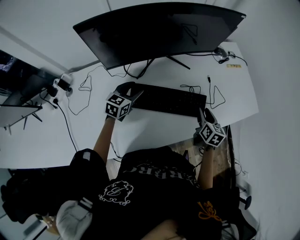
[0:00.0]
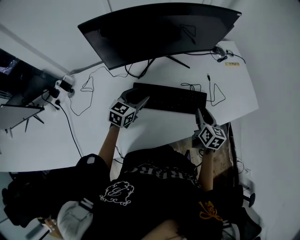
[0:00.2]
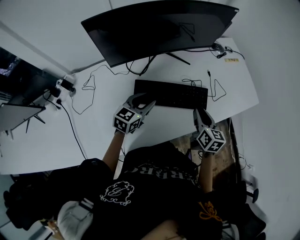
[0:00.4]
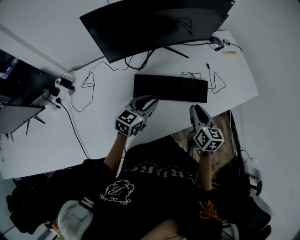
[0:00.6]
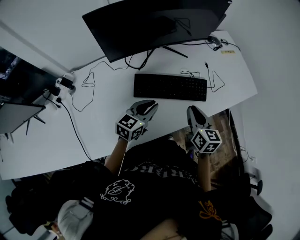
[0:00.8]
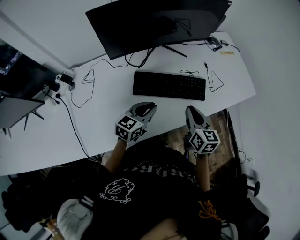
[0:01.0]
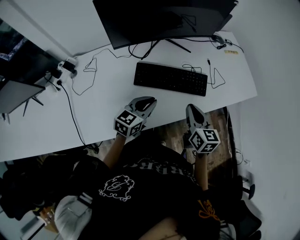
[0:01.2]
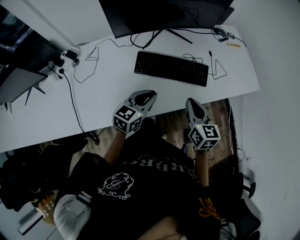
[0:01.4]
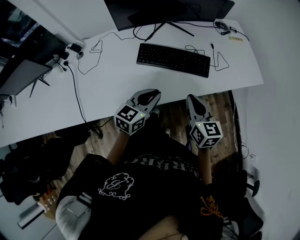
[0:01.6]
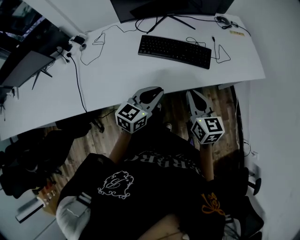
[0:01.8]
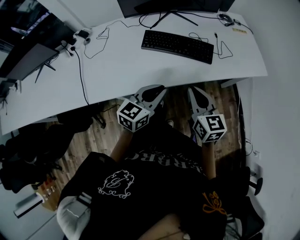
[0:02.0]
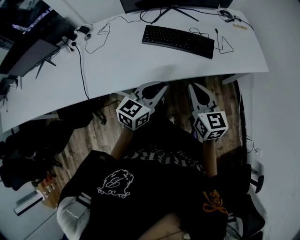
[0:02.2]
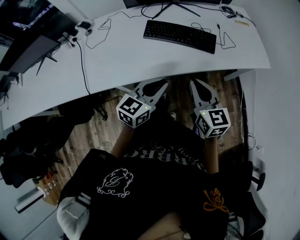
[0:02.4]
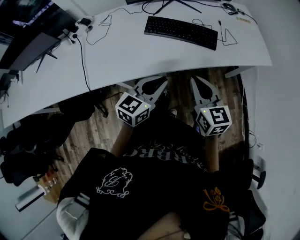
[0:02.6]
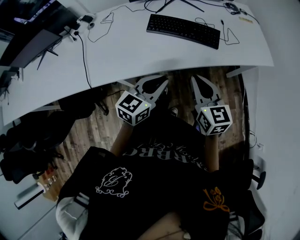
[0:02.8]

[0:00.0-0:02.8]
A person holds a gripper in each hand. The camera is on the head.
0:00.0 to 0:01.4: The right gripper moves backward and upward, some 25 cm, swivels approximately 20 degrees, and closes. The left gripper moves backward and to the right, approximately 25 cm, and closes up.
0:01.4 to 0:02.8: The two grippers go approximately 15 cm backward.

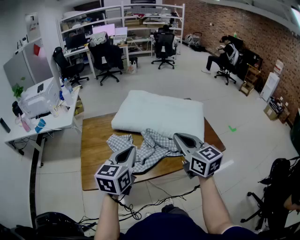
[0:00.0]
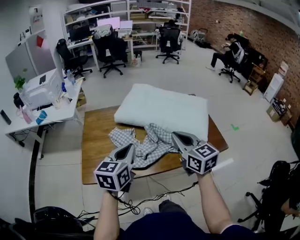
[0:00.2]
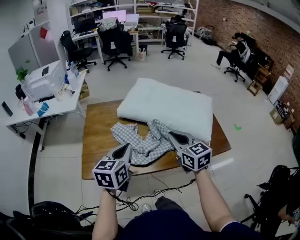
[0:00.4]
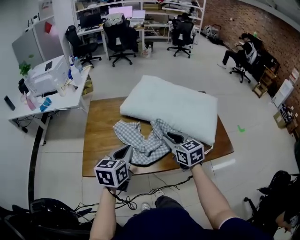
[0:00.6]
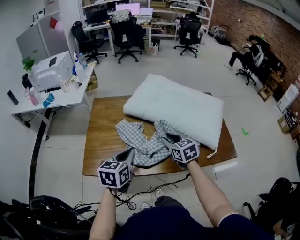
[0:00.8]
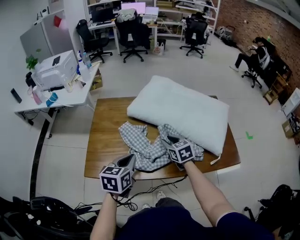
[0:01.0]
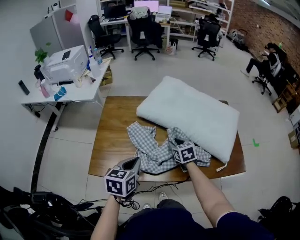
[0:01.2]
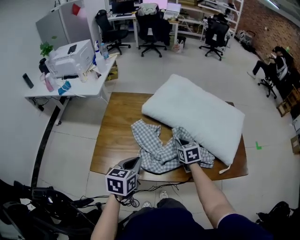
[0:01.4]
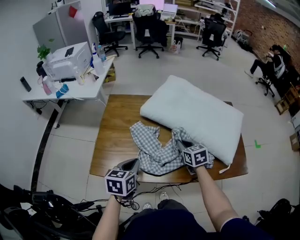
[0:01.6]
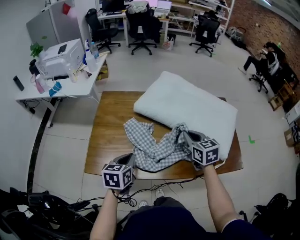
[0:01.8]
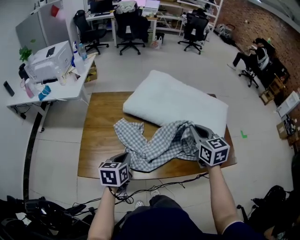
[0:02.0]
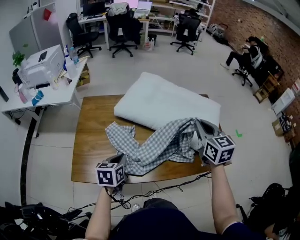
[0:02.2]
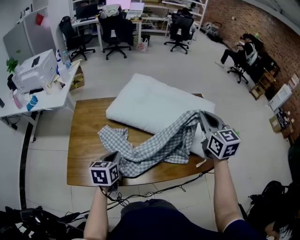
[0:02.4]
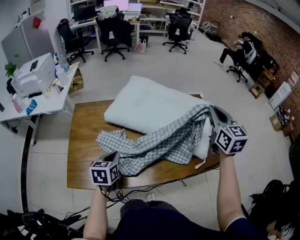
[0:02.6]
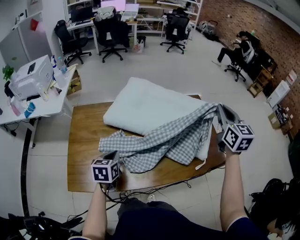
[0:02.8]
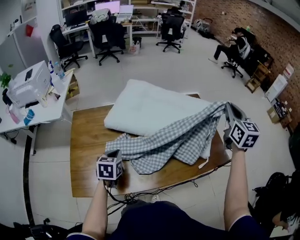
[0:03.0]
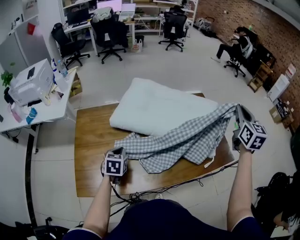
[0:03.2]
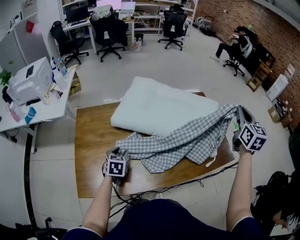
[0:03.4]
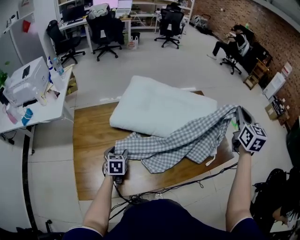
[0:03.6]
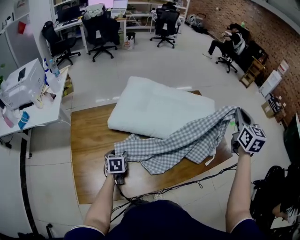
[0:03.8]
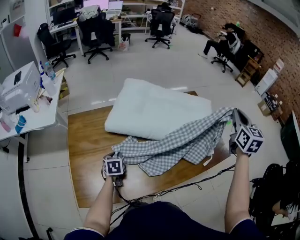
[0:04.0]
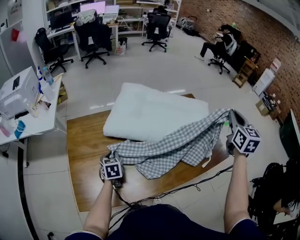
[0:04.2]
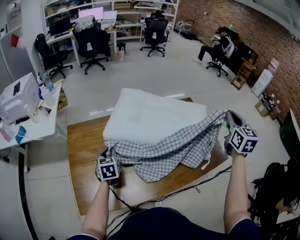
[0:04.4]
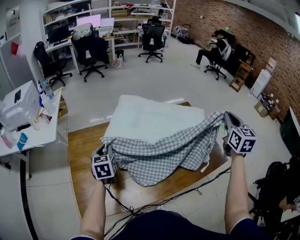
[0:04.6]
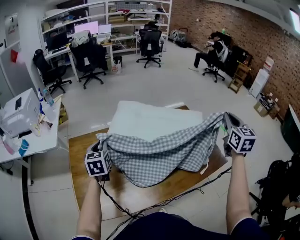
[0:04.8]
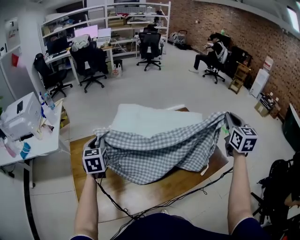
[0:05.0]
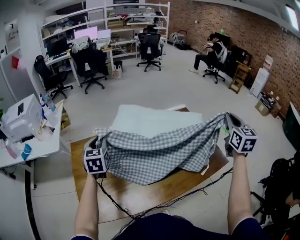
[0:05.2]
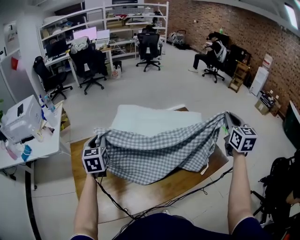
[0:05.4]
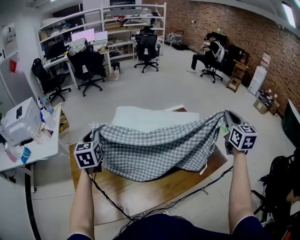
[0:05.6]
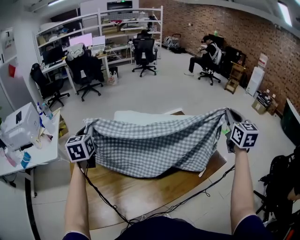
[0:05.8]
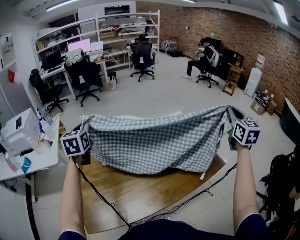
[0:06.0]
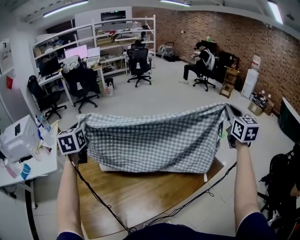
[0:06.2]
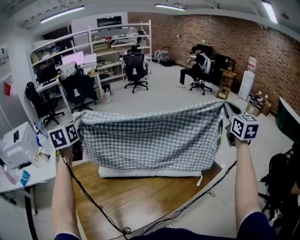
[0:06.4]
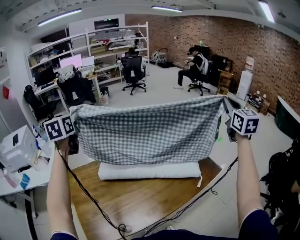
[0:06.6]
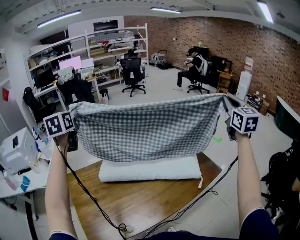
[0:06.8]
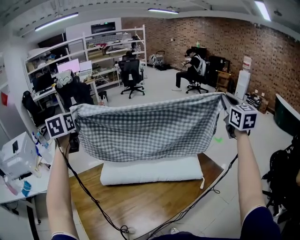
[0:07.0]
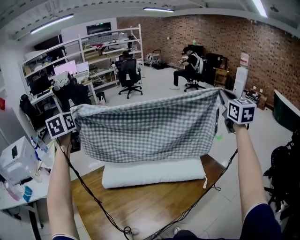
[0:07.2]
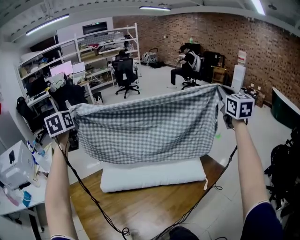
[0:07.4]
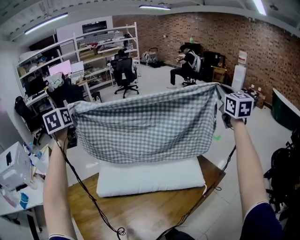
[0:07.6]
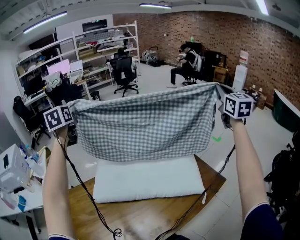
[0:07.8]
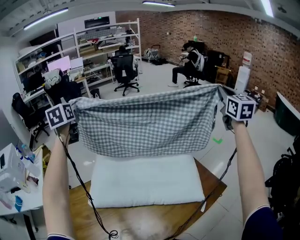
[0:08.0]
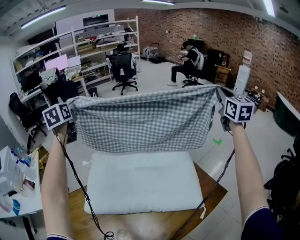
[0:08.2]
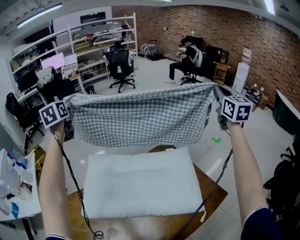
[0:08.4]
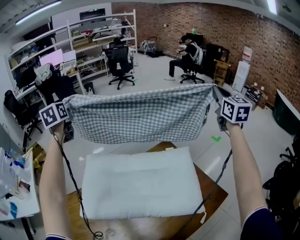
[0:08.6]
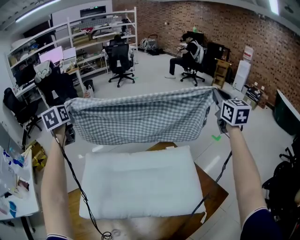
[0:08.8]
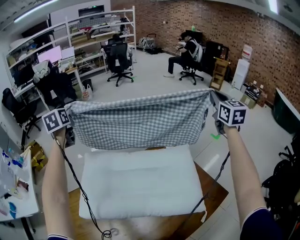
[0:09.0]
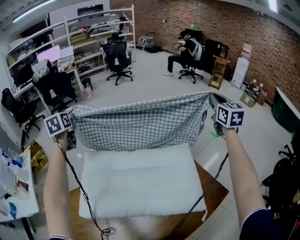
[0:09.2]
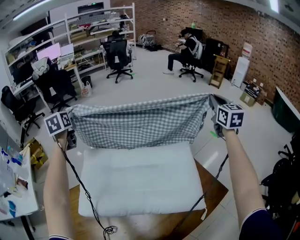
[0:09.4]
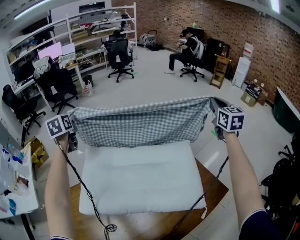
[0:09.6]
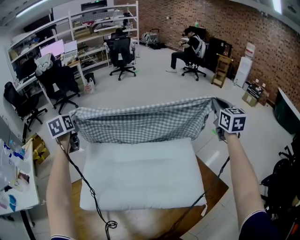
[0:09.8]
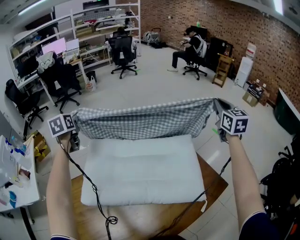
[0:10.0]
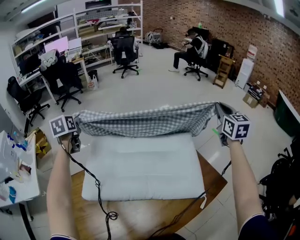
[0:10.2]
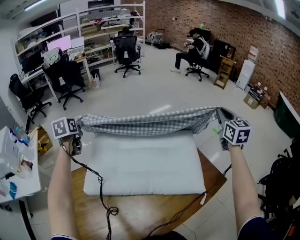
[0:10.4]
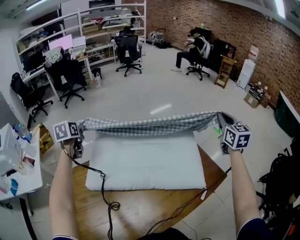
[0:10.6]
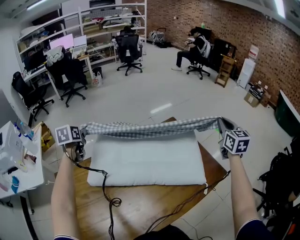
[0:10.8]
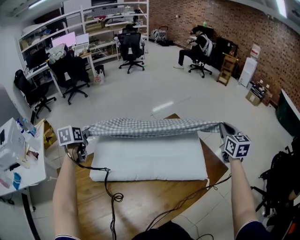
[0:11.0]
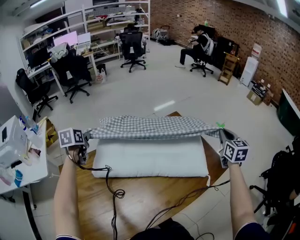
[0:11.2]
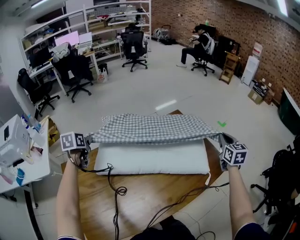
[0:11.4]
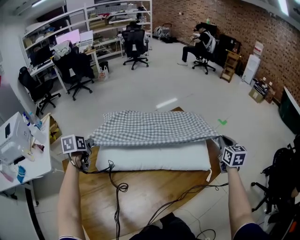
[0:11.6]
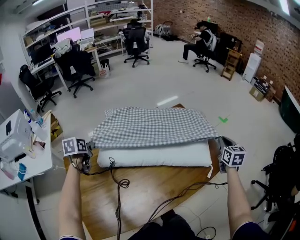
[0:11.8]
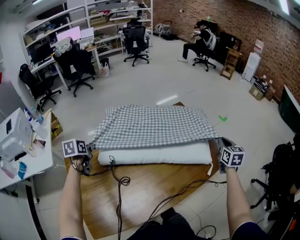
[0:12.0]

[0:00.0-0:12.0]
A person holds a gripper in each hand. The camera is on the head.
0:00.0 to 0:01.6: The left gripper moves downward and to the left, about 15 cm, and swivels about 30 degrees; the right gripper travels downward and forward by some 30 cm, angles its fingers downward, by some 30 degrees, and opens, then closes again.
0:01.6 to 0:03.0: The left gripper shifts roughly 10 cm forward. The right gripper heads to the right and upward, covering approximately 40 cm, and points its fingers some 30 degrees further upward.
0:03.0 to 0:04.4: The left gripper travels forward and to the left by about 10 cm, goes downward and returns, approximately 10 cm each way, and opens, then closes once more.
0:04.4 to 0:06.0: The left gripper moves upward and forward, roughly 30 cm, and changes its angle by about 20 degrees, while the right gripper is displaced upward and to the right by roughly 10 cm.
0:06.0 to 0:07.6: The right gripper travels upward and forward by approximately 15 cm; the left gripper is displaced forward and upward by some 20 cm.
0:07.6 to 0:09.0: The two grippers go some 20 cm forward and downward.
0:09.0 to 0:10.4: Both grippers travel together backward and downward, roughly 15 cm.
0:10.4 to 0:12.0: The left gripper shifts about 25 cm backward and downward; the right gripper is displaced downward and backward by roughly 25 cm.

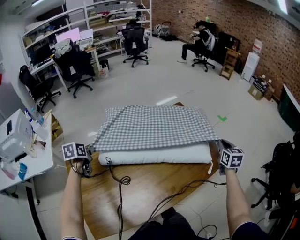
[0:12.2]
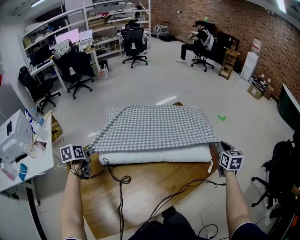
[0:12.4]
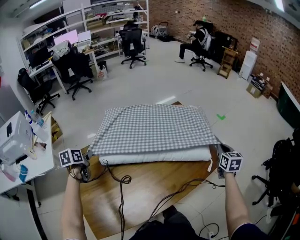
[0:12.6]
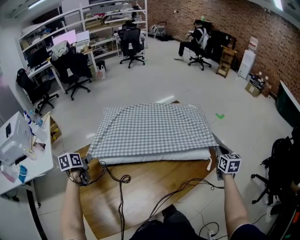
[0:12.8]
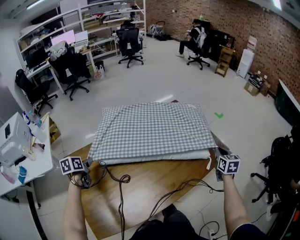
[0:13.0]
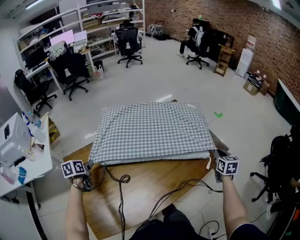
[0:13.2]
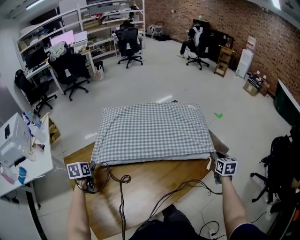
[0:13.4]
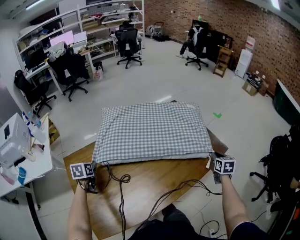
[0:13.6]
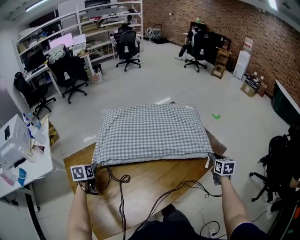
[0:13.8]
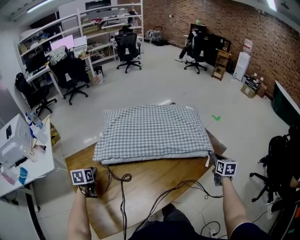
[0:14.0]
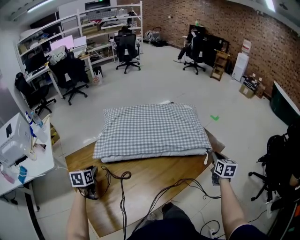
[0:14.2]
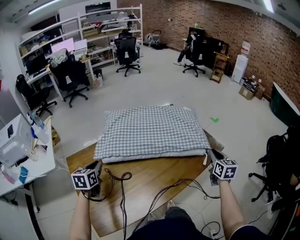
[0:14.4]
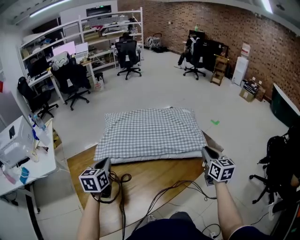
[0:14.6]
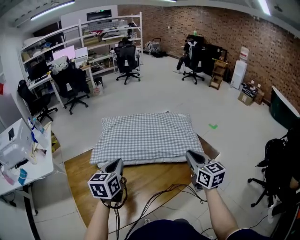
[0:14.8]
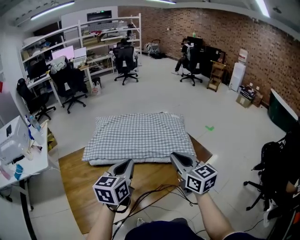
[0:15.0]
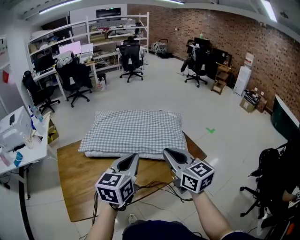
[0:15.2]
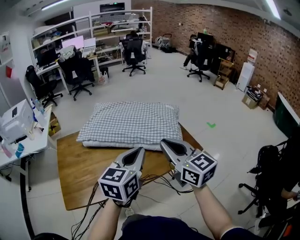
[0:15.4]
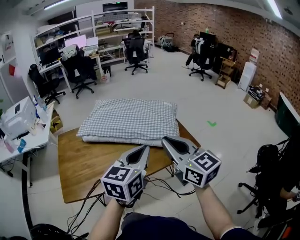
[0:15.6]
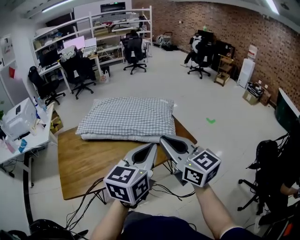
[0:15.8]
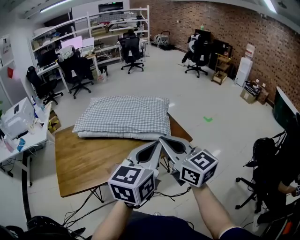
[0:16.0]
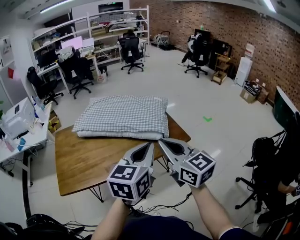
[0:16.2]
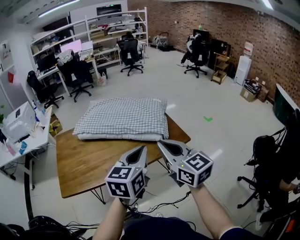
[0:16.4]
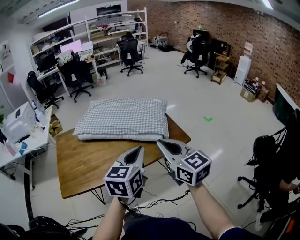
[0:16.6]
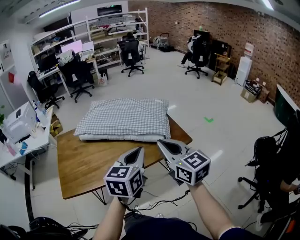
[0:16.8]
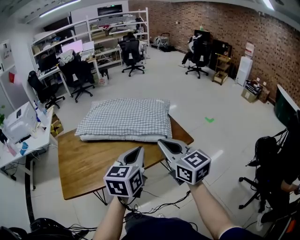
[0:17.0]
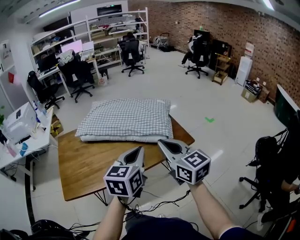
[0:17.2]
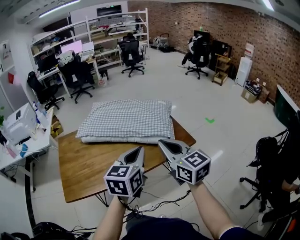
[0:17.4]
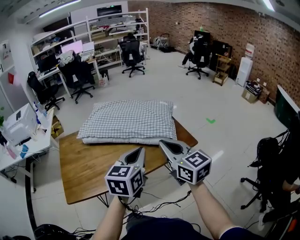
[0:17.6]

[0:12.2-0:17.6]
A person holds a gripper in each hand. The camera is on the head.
0:12.2 to 0:13.6: The grippers both shift downward and backward by roughly 10 cm.
0:13.6 to 0:15.0: The left gripper travels to the right and upward by some 40 cm, and tips its fingers upward by about 40 degrees, while the right gripper is displaced upward, to the left and backward by roughly 30 cm, and tilts its fingers about 30 degrees upward.
0:15.0 to 0:16.2: The left gripper heads to the right and backward, covering some 25 cm. Meanwhile the right gripper heads backward, to the right and upward, covering about 15 cm.
0:16.2 to 0:17.6: The left gripper is displaced to the left and forward by about 10 cm. Meanwhile the right gripper ends up roughly 5 cm from where it was.

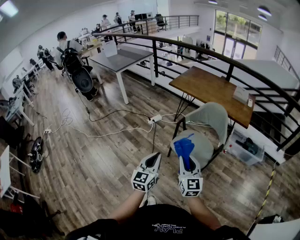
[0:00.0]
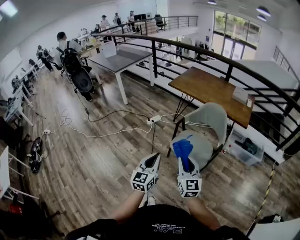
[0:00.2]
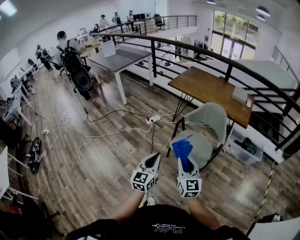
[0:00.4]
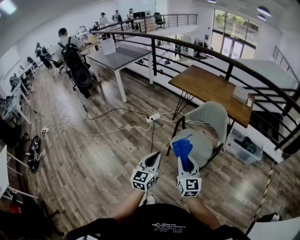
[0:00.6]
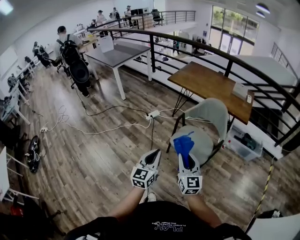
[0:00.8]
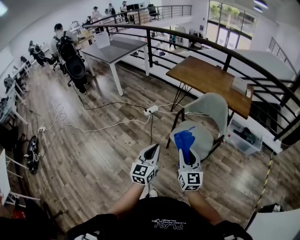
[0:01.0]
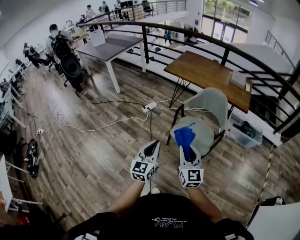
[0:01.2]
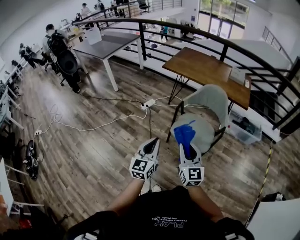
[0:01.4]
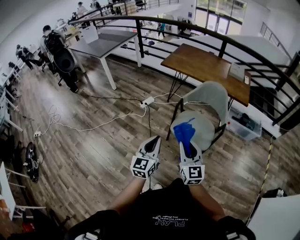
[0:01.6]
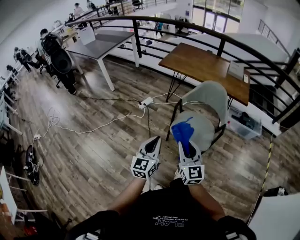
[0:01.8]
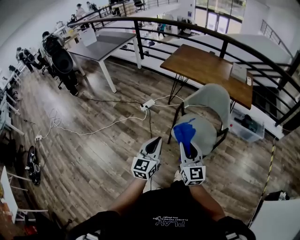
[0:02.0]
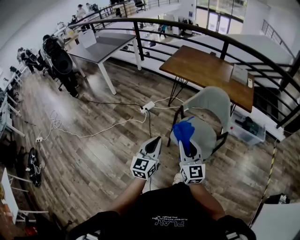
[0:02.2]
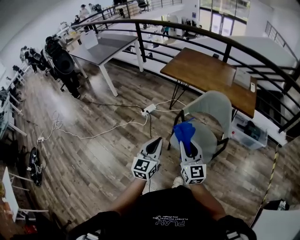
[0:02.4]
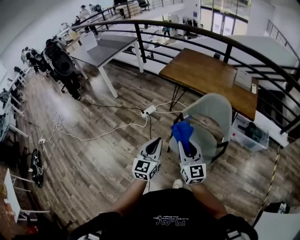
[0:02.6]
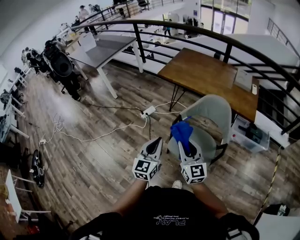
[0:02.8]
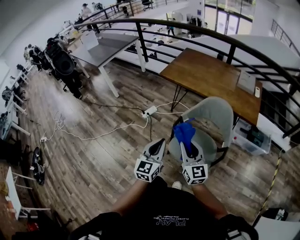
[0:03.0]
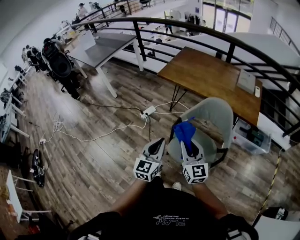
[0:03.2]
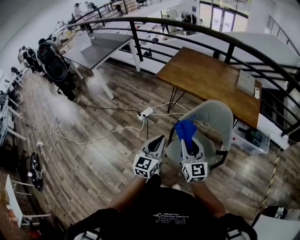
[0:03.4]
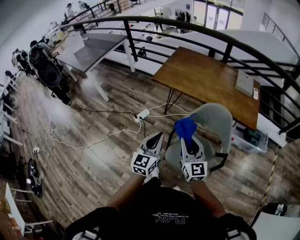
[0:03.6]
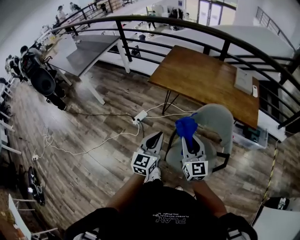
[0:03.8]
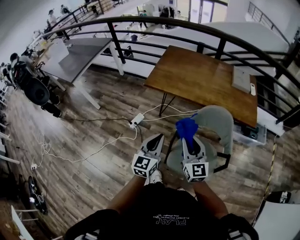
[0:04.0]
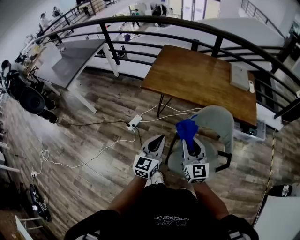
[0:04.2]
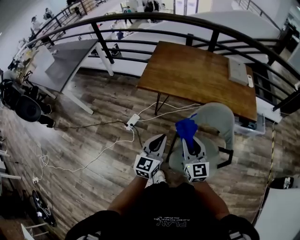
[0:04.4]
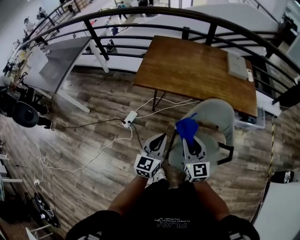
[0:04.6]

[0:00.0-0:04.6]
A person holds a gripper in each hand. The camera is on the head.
0:00.0 to 0:01.6: The left gripper travels to the left and forward by some 10 cm, while the right gripper travels to the left by about 5 cm.
0:01.6 to 0:03.0: The right gripper goes roughly 20 cm forward; the left gripper goes roughly 20 cm forward and to the right.
0:03.0 to 0:04.6: Both grippers travel together forward, some 25 cm. The left gripper swivels some 20 degrees; the right gripper turns by roughly 20 degrees.
